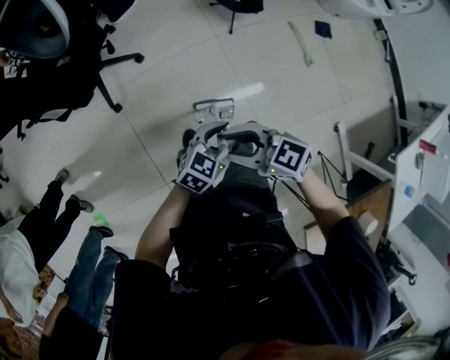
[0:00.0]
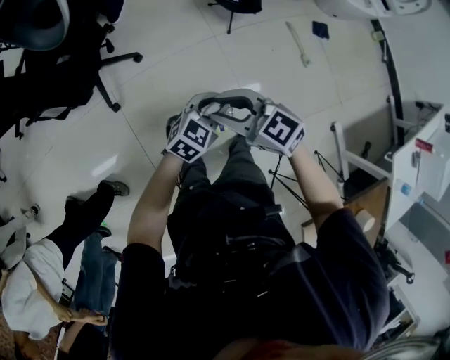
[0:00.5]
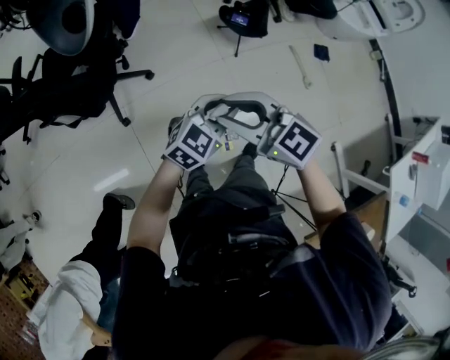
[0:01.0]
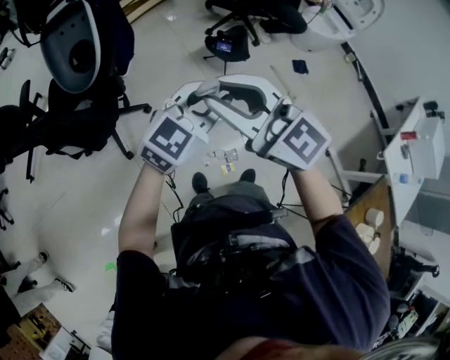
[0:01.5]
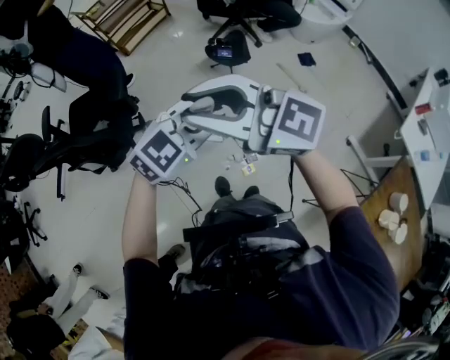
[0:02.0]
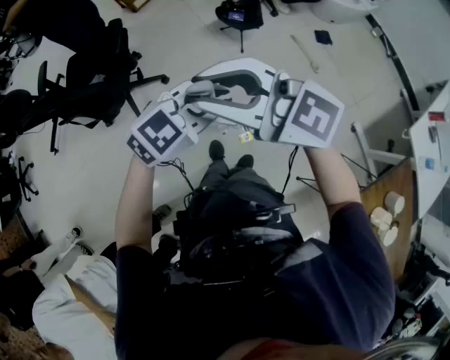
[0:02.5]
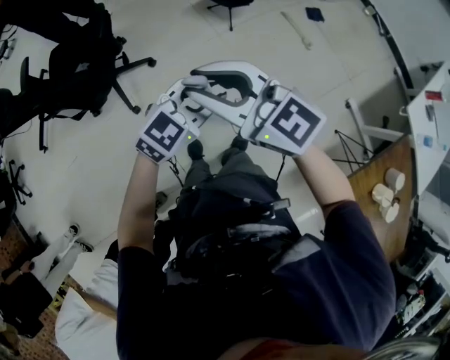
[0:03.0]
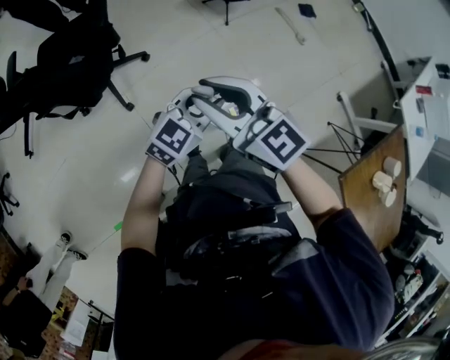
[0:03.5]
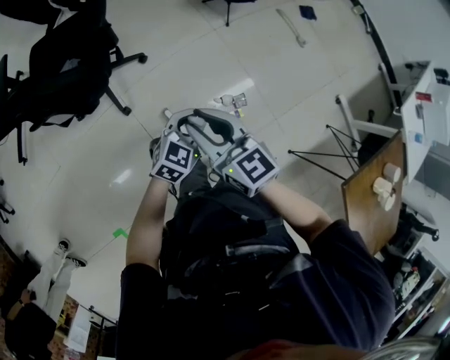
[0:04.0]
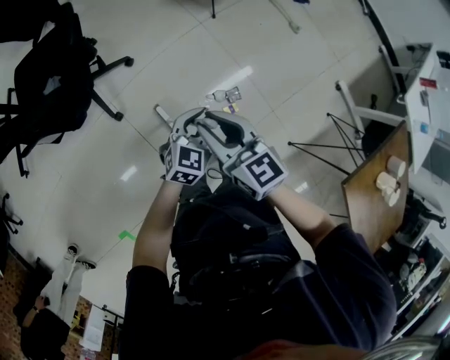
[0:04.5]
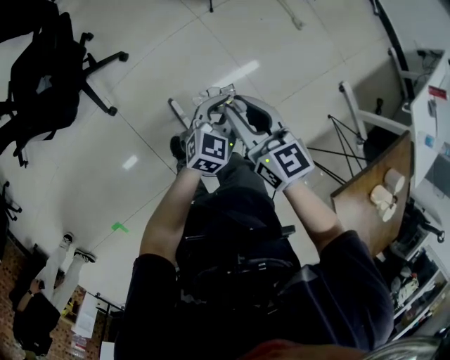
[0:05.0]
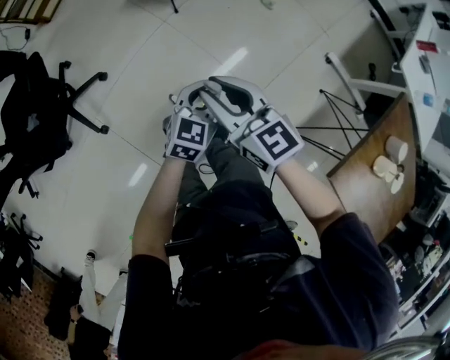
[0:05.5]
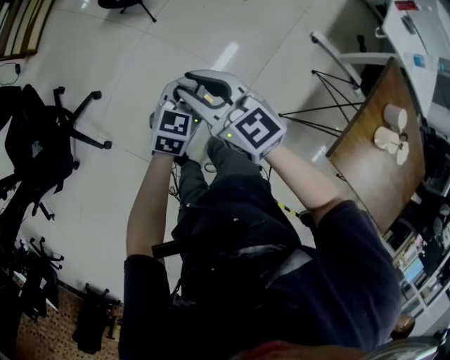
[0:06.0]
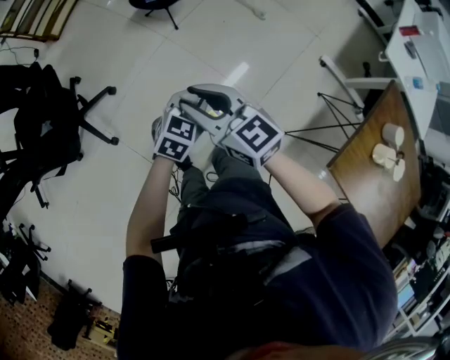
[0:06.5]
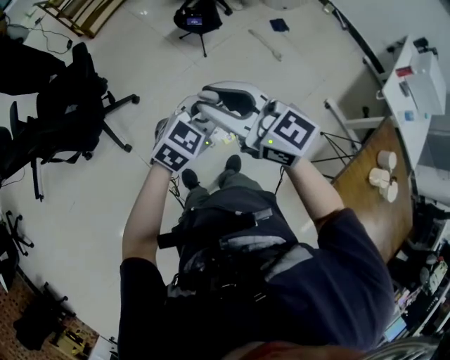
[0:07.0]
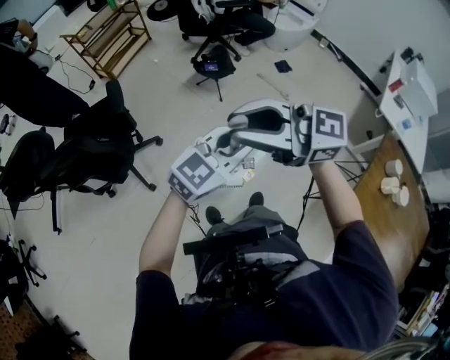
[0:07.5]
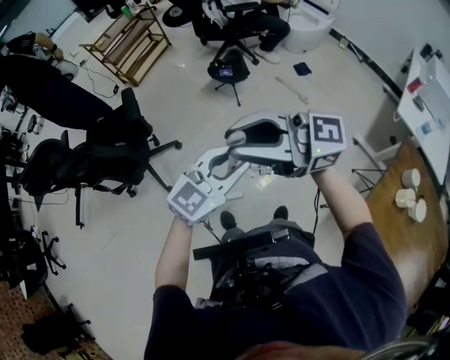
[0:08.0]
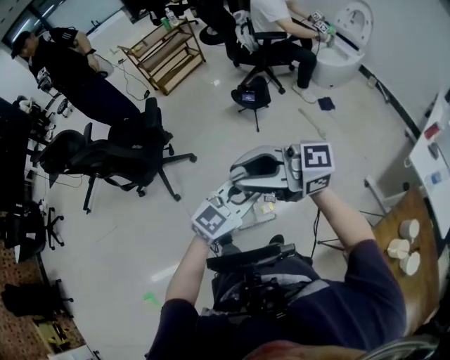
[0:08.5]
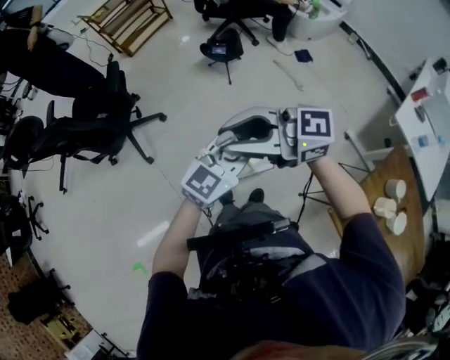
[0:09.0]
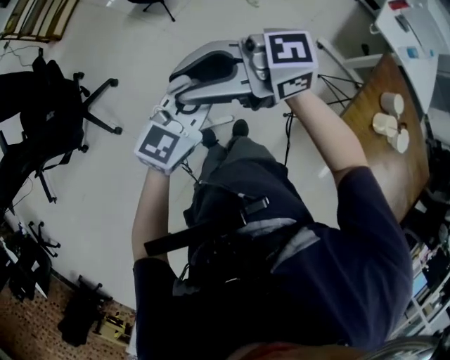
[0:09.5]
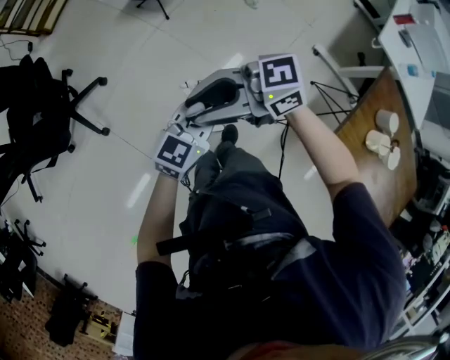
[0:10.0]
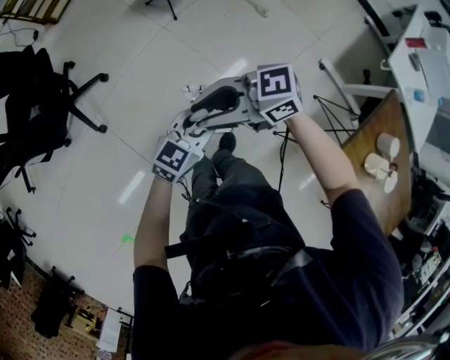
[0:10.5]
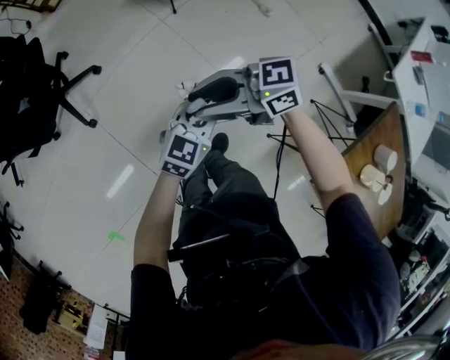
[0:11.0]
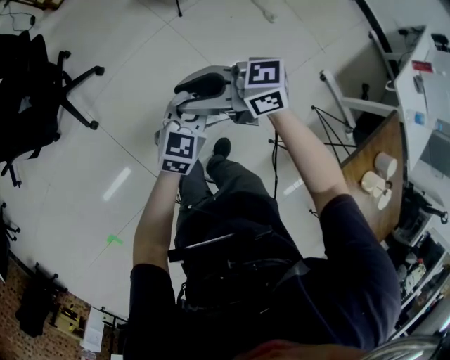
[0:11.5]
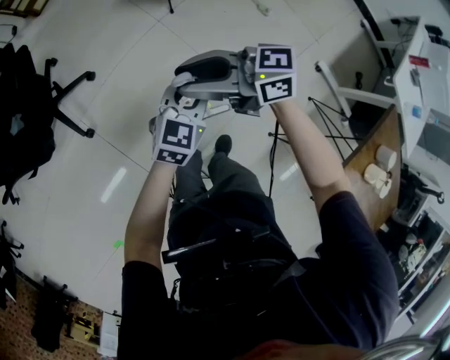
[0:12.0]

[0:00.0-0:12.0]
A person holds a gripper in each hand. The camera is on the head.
0:00.0 to 0:02.0: Both grippers move upward, roughly 30 cm. The left gripper swivels approximately 40 degrees. The right gripper rotates some 40 degrees.
0:02.0 to 0:04.0: The two grippers go some 30 cm downward. The right gripper swivels some 40 degrees. Meanwhile the left gripper turns by some 30 degrees.
0:04.0 to 0:06.0: The left gripper travels to the right by some 30 cm; the right gripper is displaced to the right and forward by about 35 cm.
0:06.0 to 0:08.0: Both grippers travel together upward, approximately 30 cm. The left gripper swivels approximately 30 degrees, while the right gripper rotates some 60 degrees.
0:08.0 to 0:10.0: Both grippers move downward, roughly 20 cm. The left gripper rotates approximately 20 degrees. The right gripper rotates some 30 degrees.
0:10.0 to 0:12.0: The right gripper moves roughly 20 cm. The left gripper ends up some 20 cm from where it was.

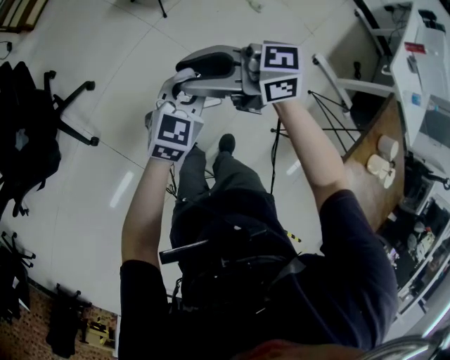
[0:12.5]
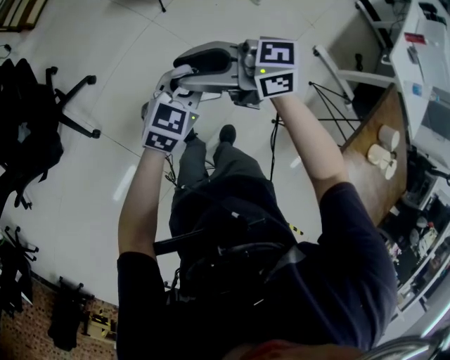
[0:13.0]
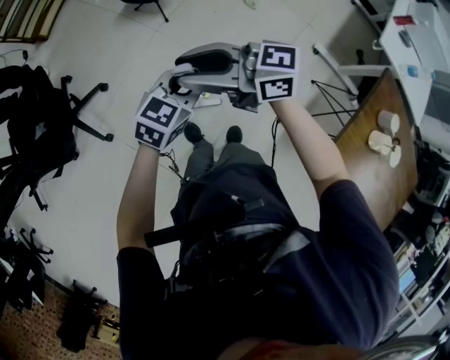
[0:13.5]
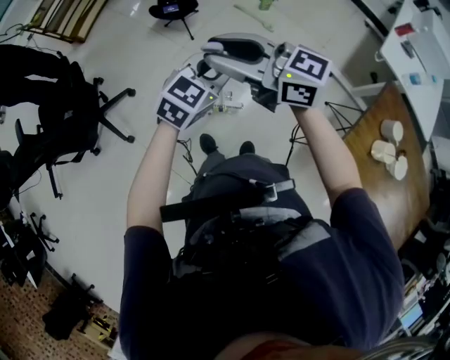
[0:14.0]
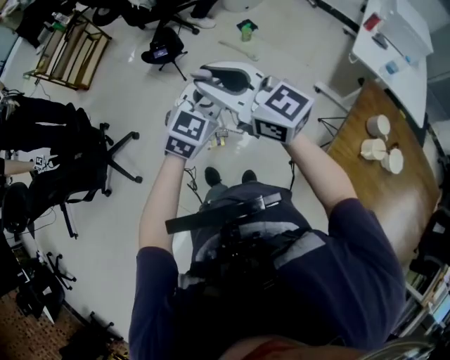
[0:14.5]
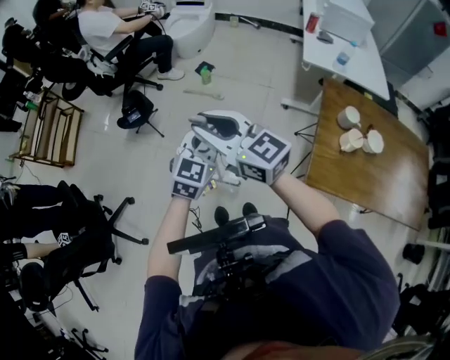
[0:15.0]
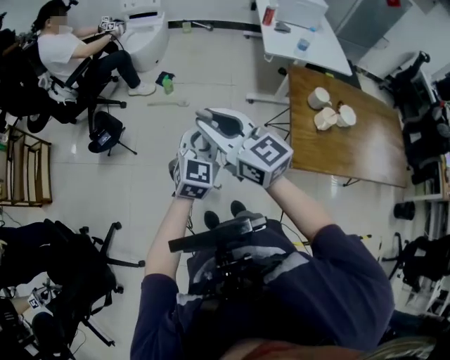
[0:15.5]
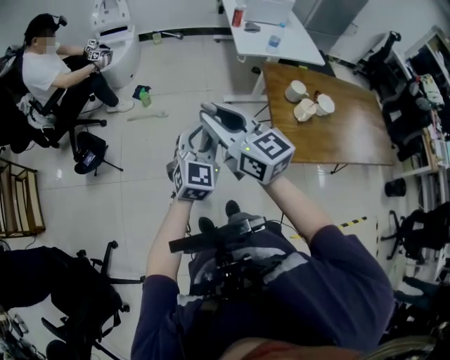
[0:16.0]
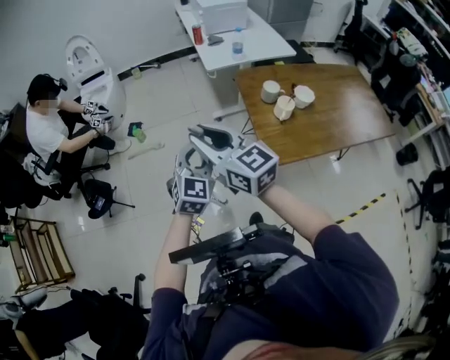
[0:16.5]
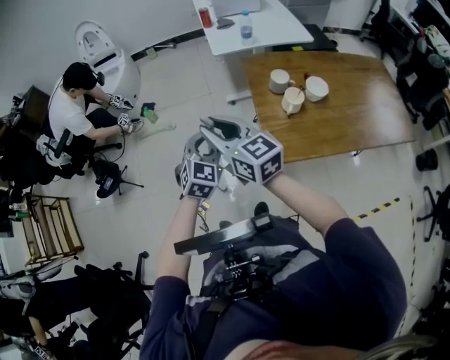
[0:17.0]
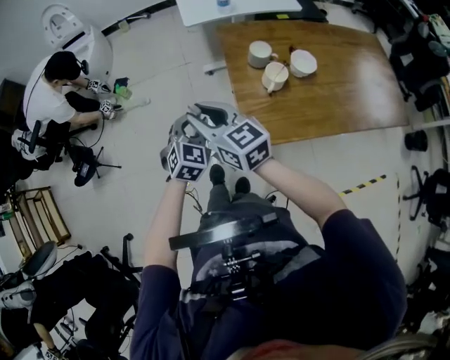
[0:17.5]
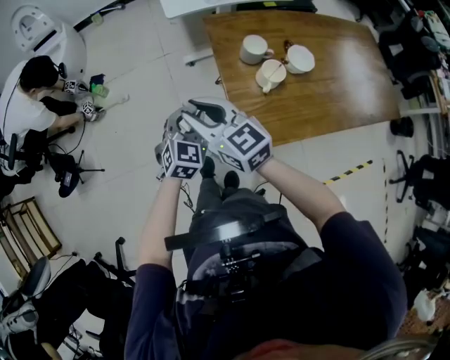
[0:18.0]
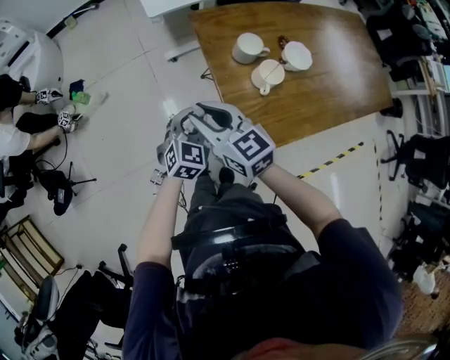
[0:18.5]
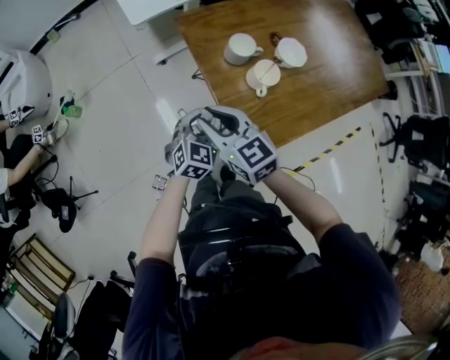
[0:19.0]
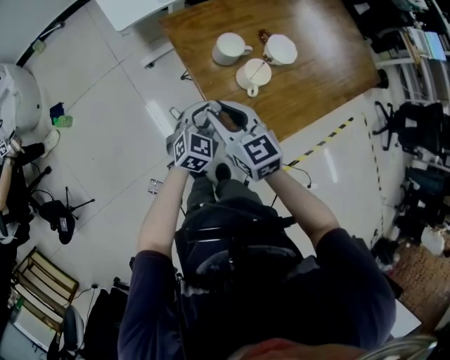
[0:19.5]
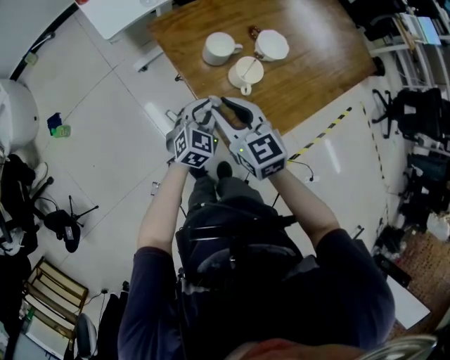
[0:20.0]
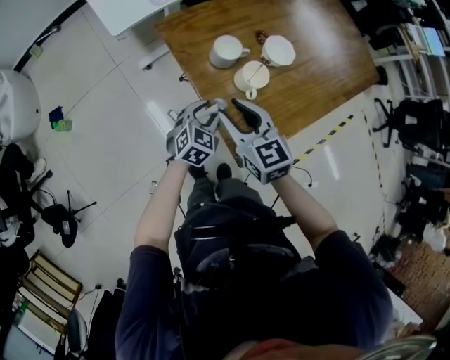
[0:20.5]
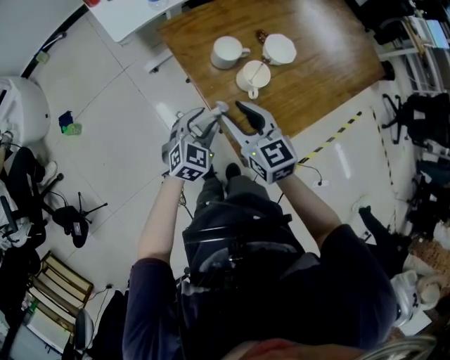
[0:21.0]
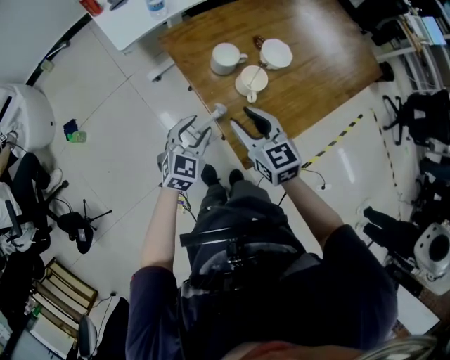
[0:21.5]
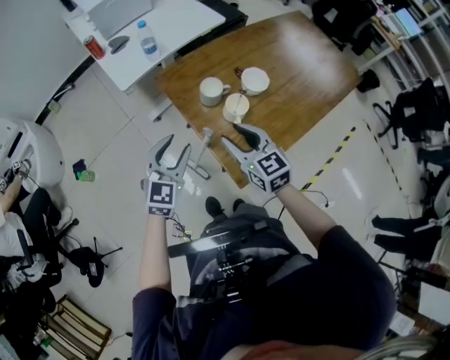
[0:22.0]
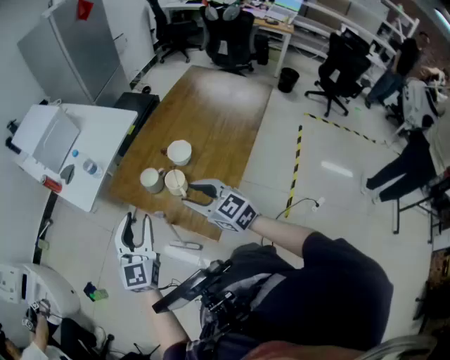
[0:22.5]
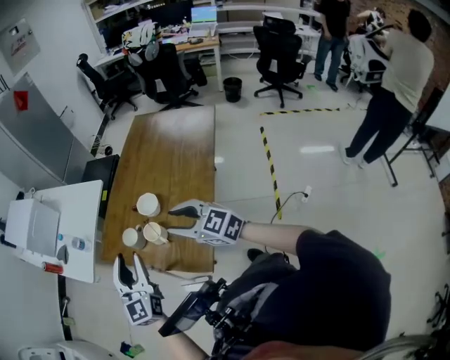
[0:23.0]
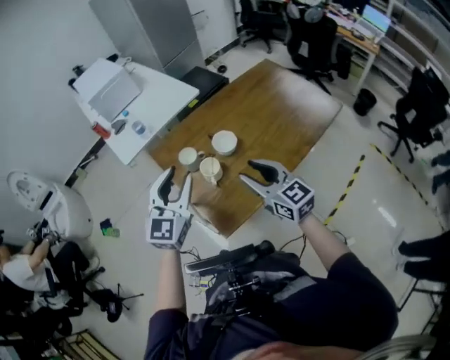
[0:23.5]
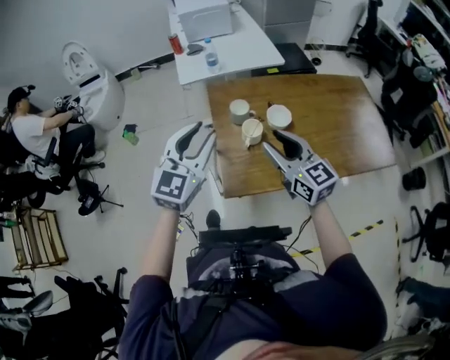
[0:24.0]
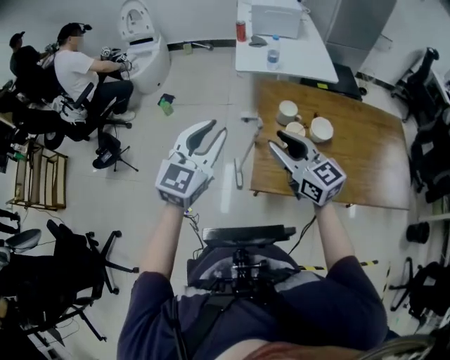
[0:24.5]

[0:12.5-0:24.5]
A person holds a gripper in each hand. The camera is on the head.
0:12.5 to 0:14.5: Both grippers move upward, some 25 cm. The left gripper swivels approximately 20 degrees, while the right gripper swivels about 50 degrees.
0:14.5 to 0:16.5: The left gripper moves some 20 cm, and turns by about 40 degrees. Meanwhile the right gripper moves some 20 cm, and turns by approximately 60 degrees.
0:16.5 to 0:18.5: The two grippers go roughly 30 cm downward, to the right and forward. The left gripper turns by some 20 degrees; the right gripper turns by approximately 20 degrees.
0:18.5 to 0:20.5: The right gripper changes place by approximately 15 cm, and changes its angle by about 30 degrees, while the left gripper shifts by about 10 cm, and rotates about 20 degrees.
0:20.5 to 0:22.5: The right gripper is displaced upward and to the right by some 15 cm. Meanwhile the left gripper moves upward, some 30 cm, and tilts its fingers approximately 30 degrees upward.
0:22.5 to 0:24.5: The right gripper turns by roughly 60 degrees. The left gripper moves some 20 cm, changes its angle by about 40 degrees, and closes.

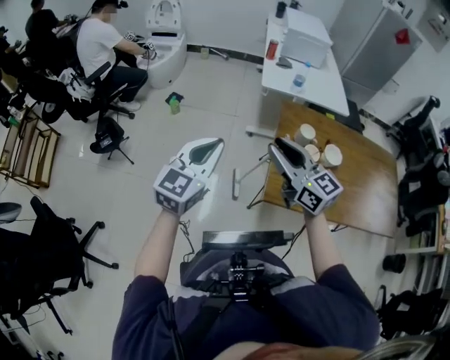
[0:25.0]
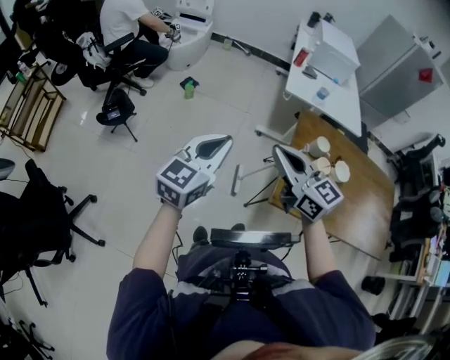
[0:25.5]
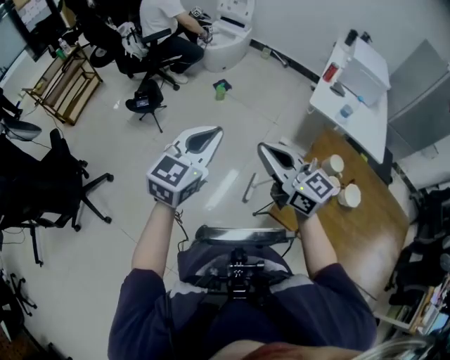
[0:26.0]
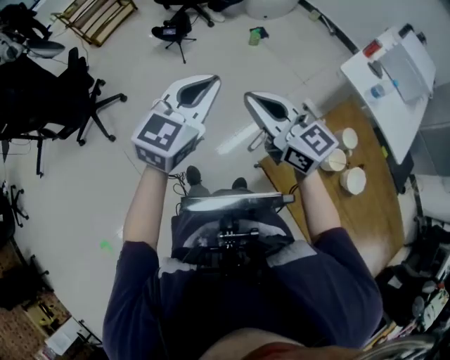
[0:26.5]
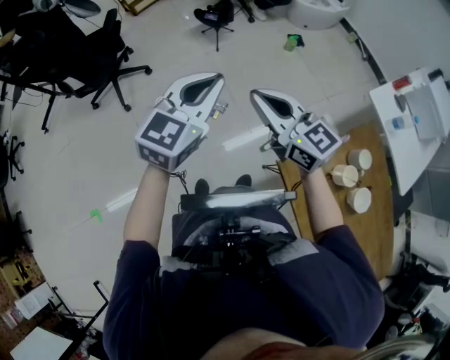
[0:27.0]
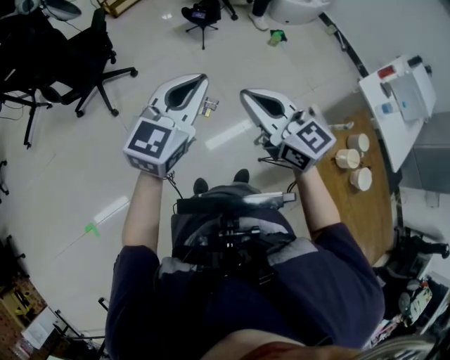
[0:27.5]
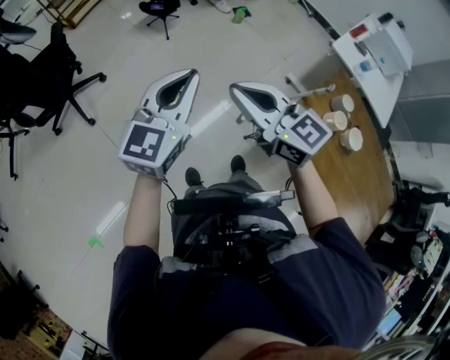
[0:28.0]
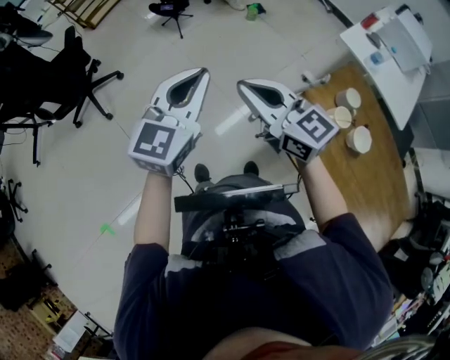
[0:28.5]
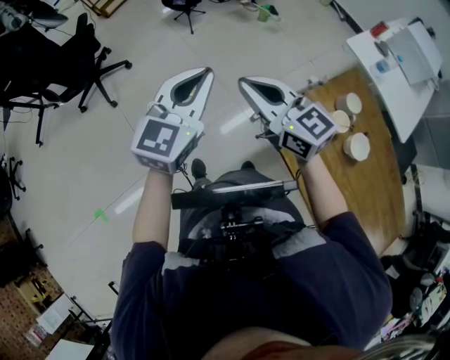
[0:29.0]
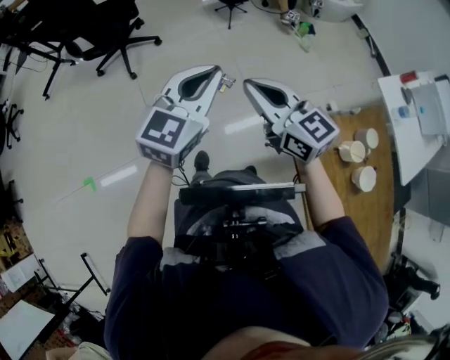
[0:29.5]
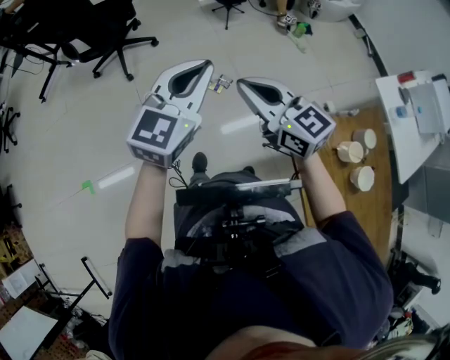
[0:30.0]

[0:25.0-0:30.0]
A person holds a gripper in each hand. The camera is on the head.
0:25.0 to 0:27.5: The left gripper moves about 30 cm, and swivels approximately 50 degrees. The right gripper changes place by some 30 cm, changes its angle by approximately 60 degrees, and closes.
0:27.5 to 0:30.0: Both grippers move backward, roughly 10 cm. The right gripper moves approximately 20 cm to the right and comes back; the left gripper moves roughly 20 cm to the right and comes back.
